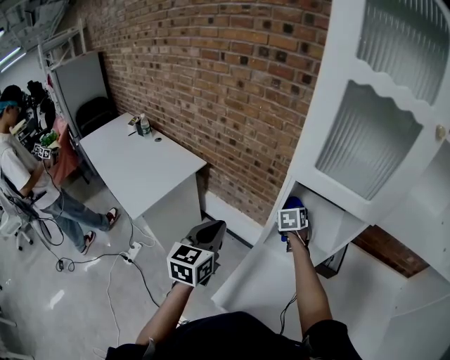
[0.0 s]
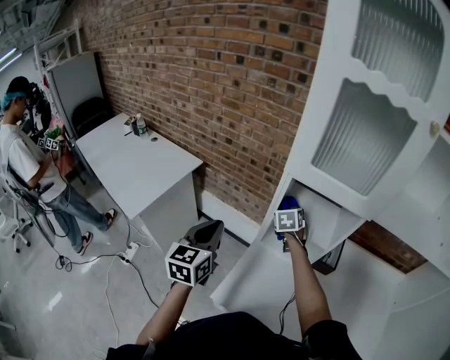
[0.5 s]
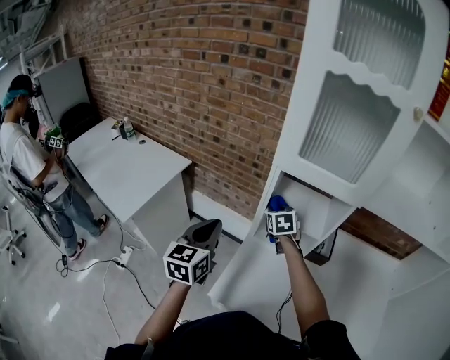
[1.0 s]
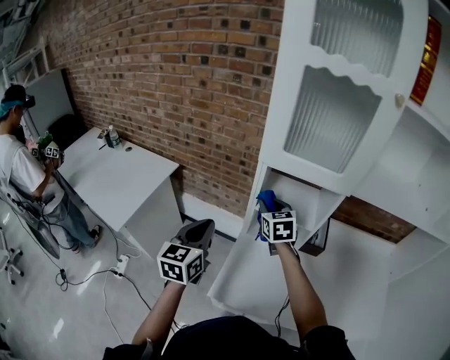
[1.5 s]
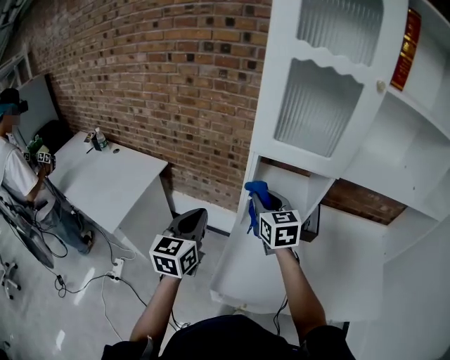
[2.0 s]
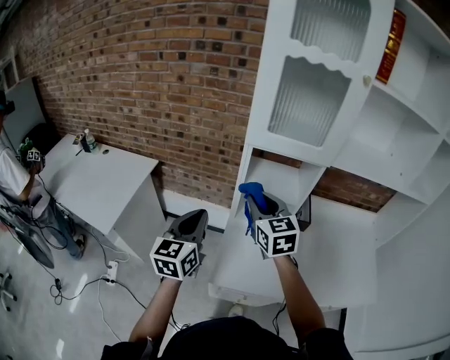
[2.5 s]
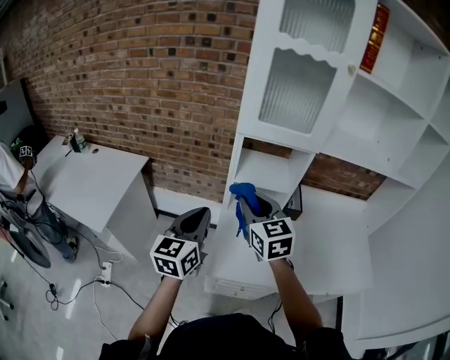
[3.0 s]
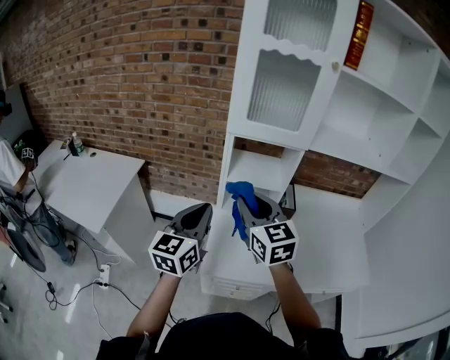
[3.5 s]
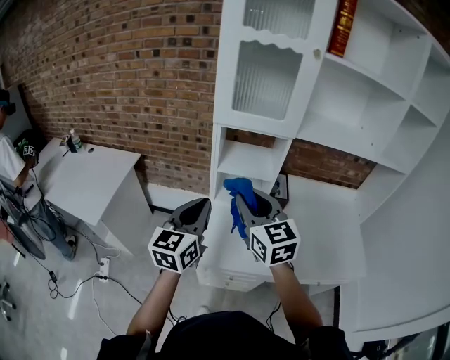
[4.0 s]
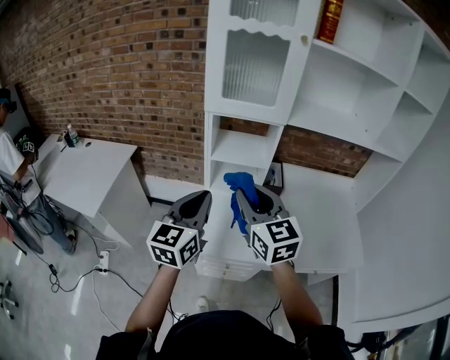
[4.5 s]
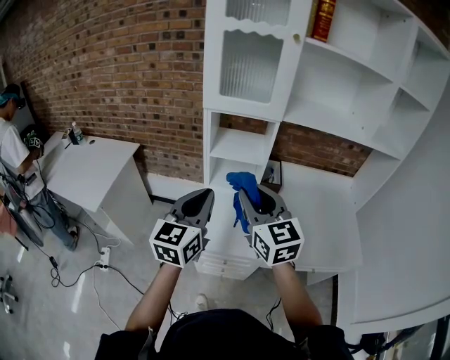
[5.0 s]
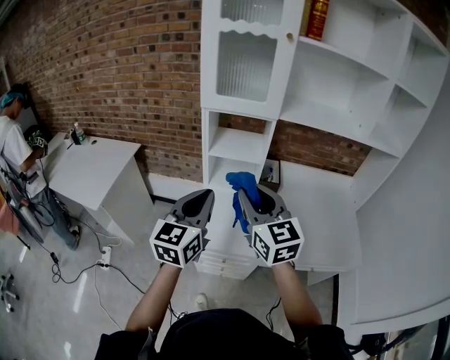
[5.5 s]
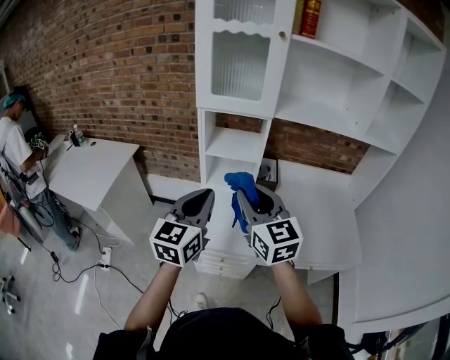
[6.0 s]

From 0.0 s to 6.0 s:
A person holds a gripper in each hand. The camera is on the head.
From 0.0 s to 2.0 s: The right gripper heads backward and upward, covering about 25 cm, and changes its angle by about 30 degrees.
From 2.0 s to 4.0 s: The left gripper goes roughly 15 cm backward and to the right; the right gripper is displaced backward by some 20 cm.
From 4.0 s to 6.0 s: Both grippers travel together backward and to the right, roughly 10 cm.

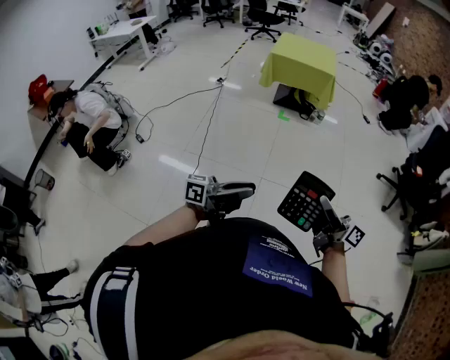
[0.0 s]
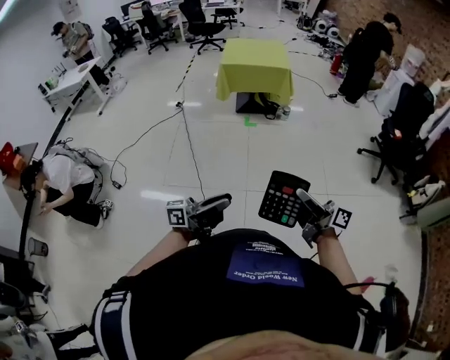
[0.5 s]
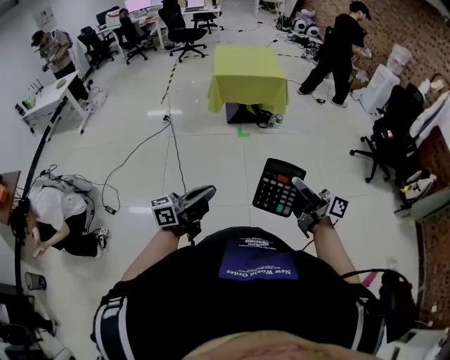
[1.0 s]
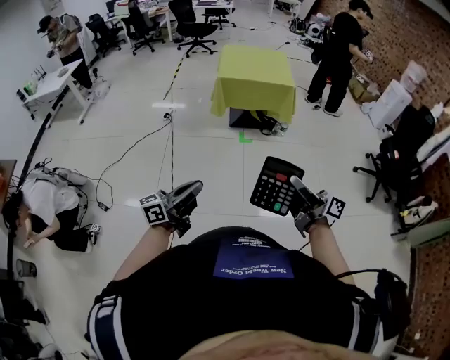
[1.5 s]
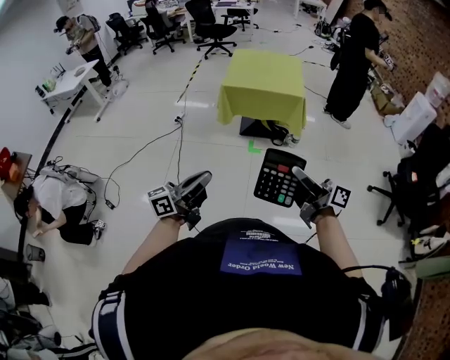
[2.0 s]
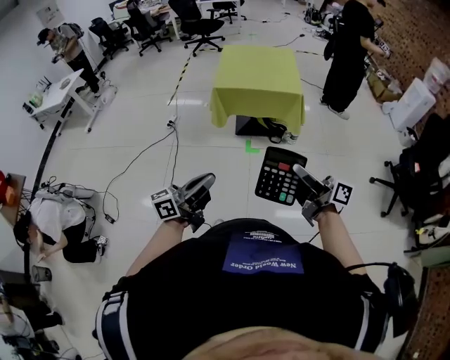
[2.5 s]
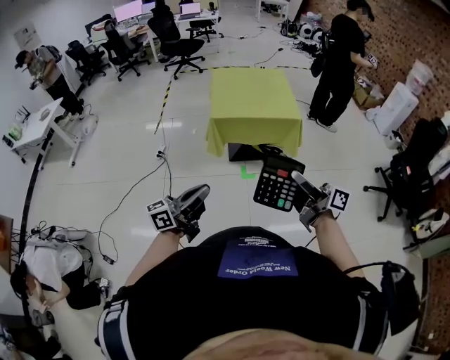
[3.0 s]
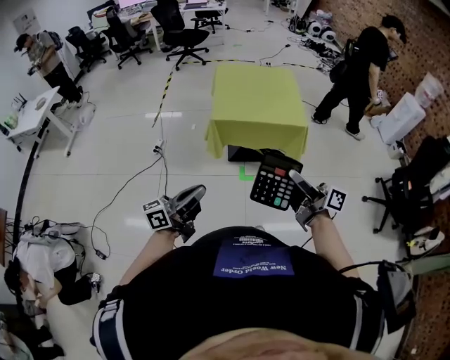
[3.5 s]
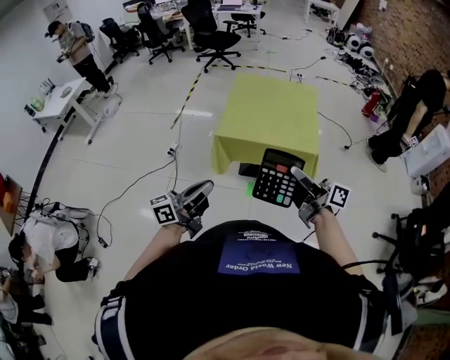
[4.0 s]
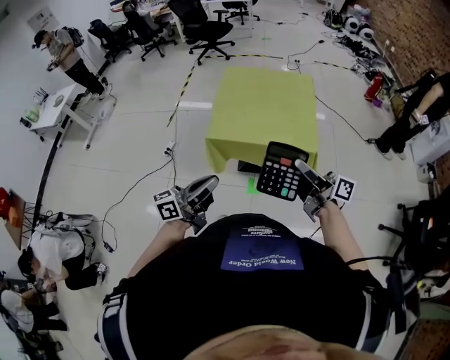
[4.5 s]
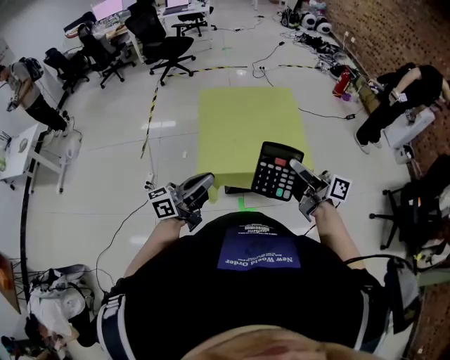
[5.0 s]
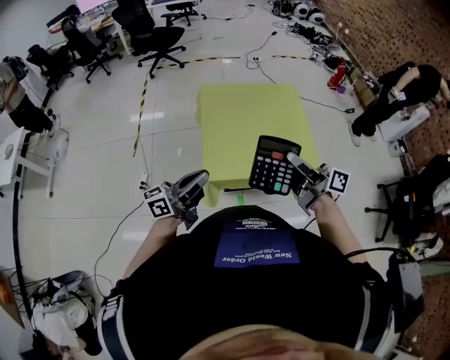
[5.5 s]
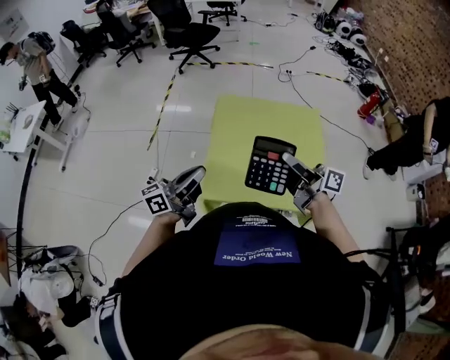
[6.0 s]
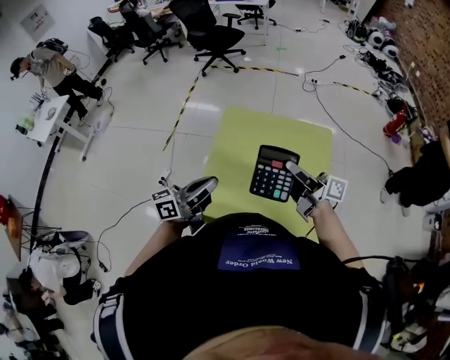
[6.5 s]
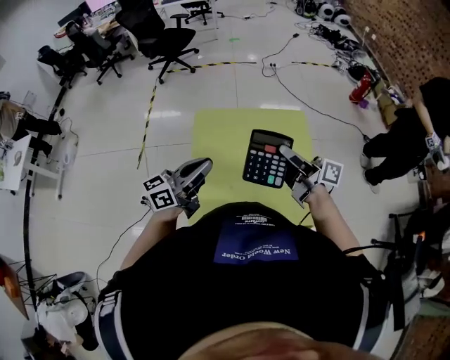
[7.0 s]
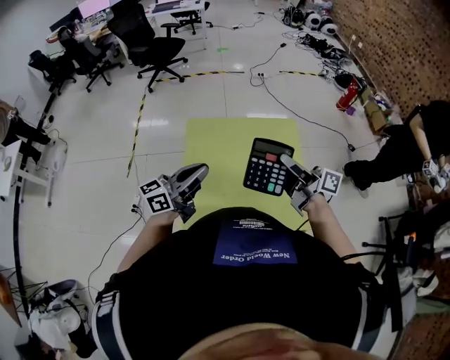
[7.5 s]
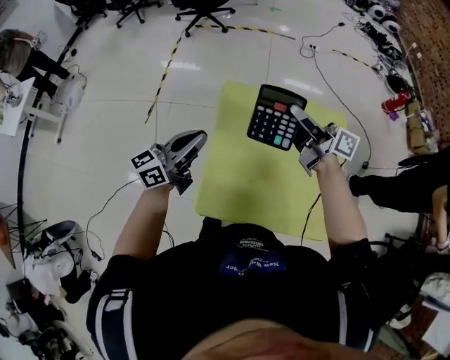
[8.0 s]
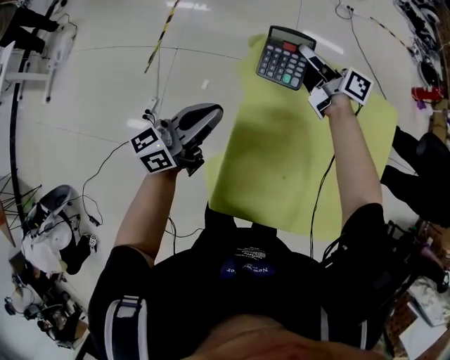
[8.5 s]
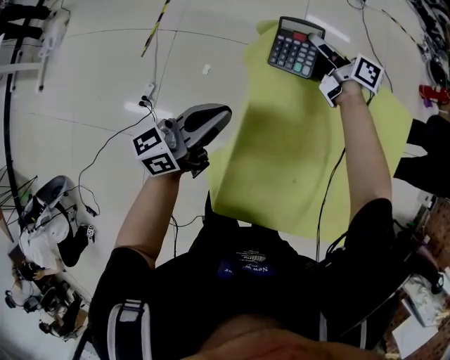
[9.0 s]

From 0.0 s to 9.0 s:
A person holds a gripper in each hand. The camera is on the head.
From 0.0 s to 2.0 s: Both grippers are carried forward, approximately 50 cm. The left gripper changes its angle by some 30 degrees, and closes its fingers.
From 2.0 s to 4.5 s: The two grippers travel together, forward, roughly 50 cm.
From 4.5 s to 7.0 s: Both grippers are carried forward, approximately 50 cm.
From 7.0 s to 9.0 s: The right gripper is displaced forward, downward and to the left by some 50 cm, and rotates roughly 30 degrees, while the left gripper is displaced downward, to the left and forward by roughly 30 cm.

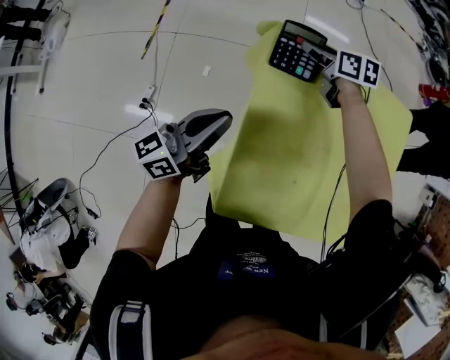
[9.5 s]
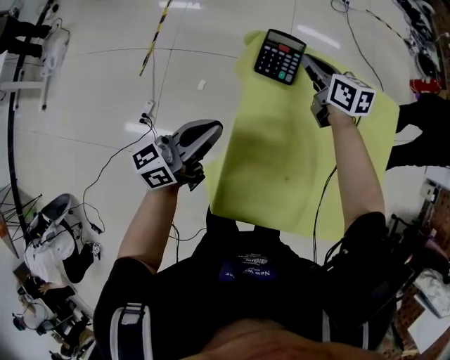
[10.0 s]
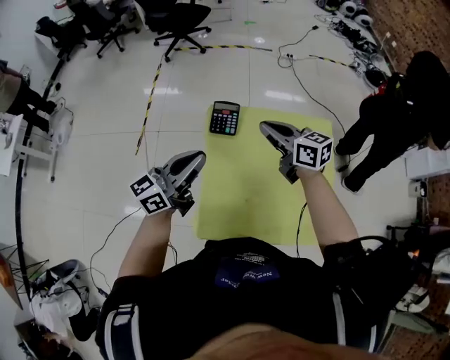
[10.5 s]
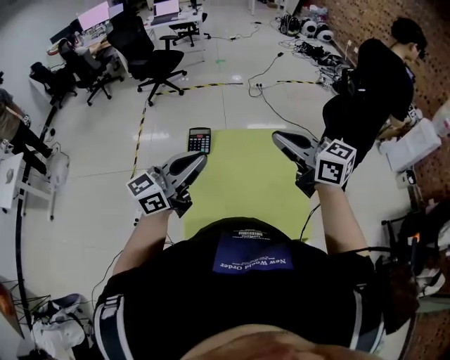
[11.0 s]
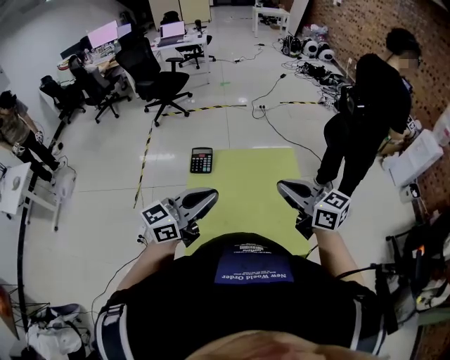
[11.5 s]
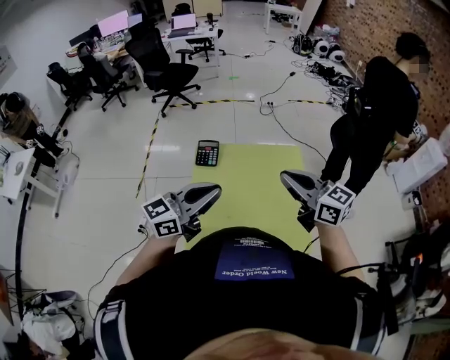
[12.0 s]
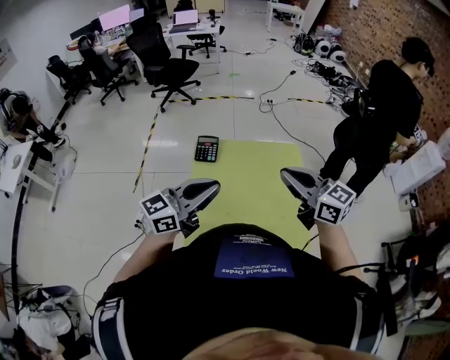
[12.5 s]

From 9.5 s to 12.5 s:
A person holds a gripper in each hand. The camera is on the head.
From 9.5 s to 11.0 s: The right gripper goes about 60 cm upward, backward and to the right, tips its fingers upward by approximately 30 degrees, and closes its fingers. The left gripper travels upward and to the right by about 35 cm, and turns by approximately 30 degrees.
From 11.0 s to 12.5 s: The two grippers go roughly 5 cm backward.

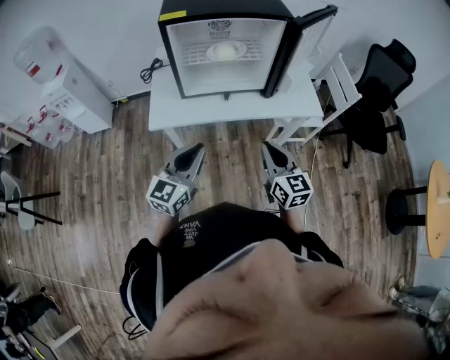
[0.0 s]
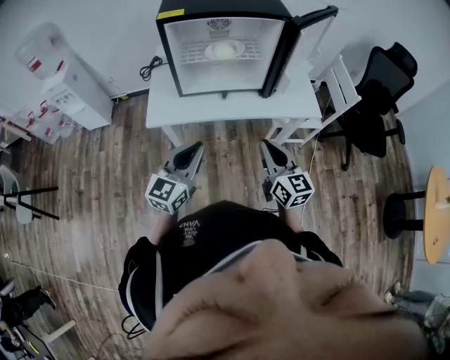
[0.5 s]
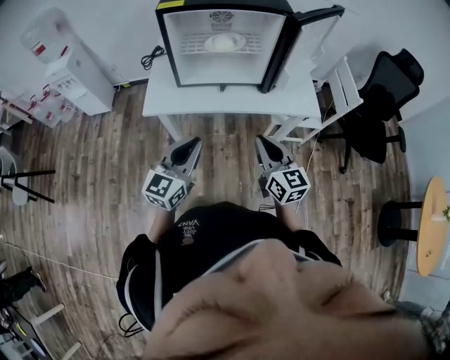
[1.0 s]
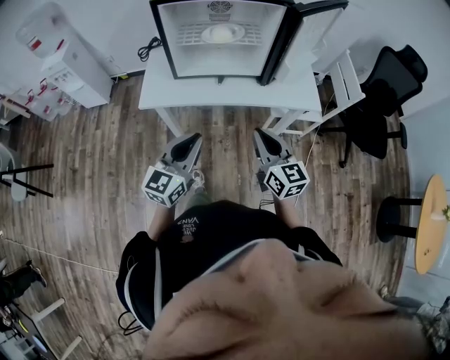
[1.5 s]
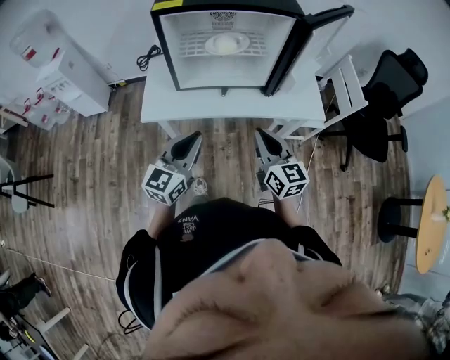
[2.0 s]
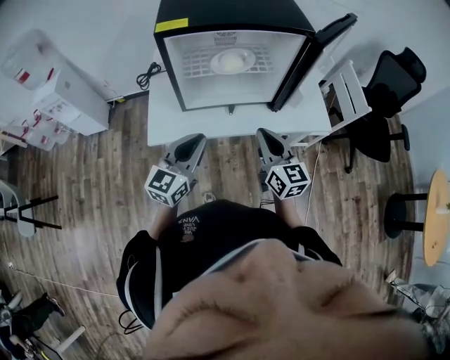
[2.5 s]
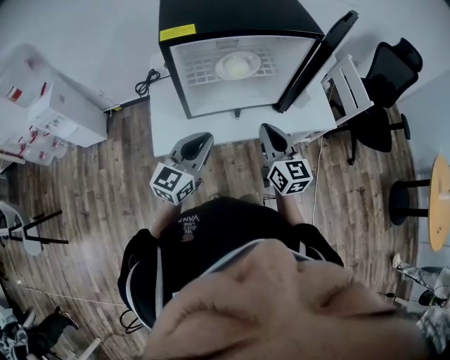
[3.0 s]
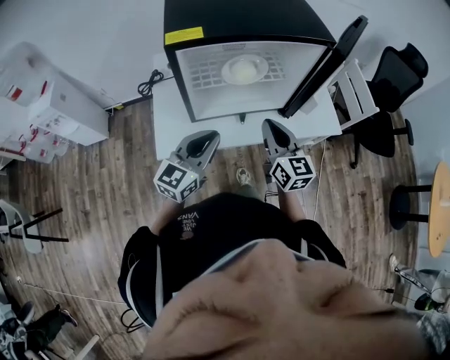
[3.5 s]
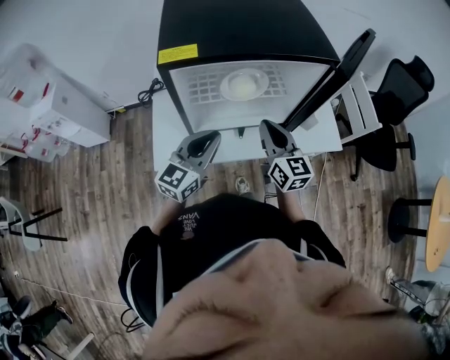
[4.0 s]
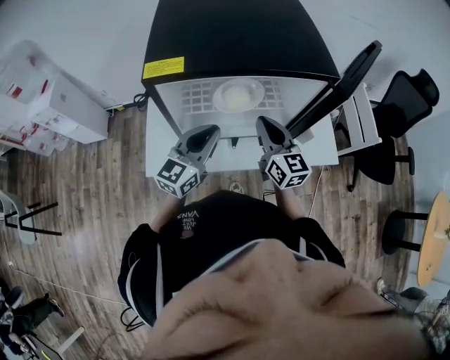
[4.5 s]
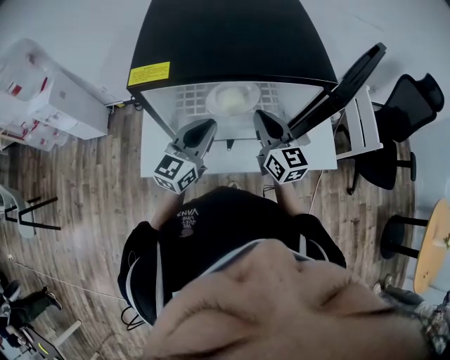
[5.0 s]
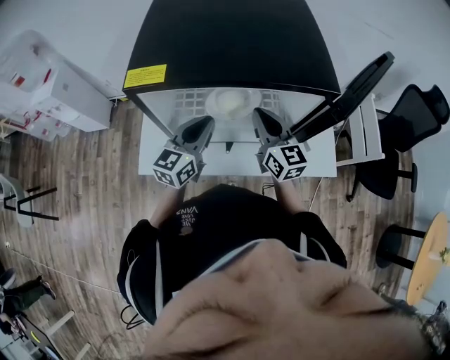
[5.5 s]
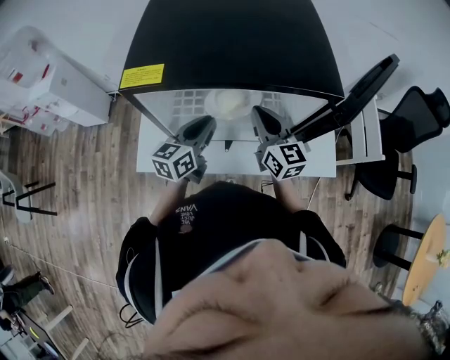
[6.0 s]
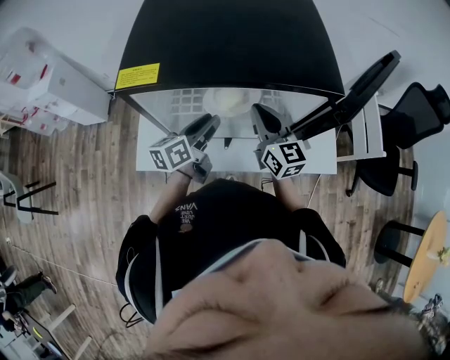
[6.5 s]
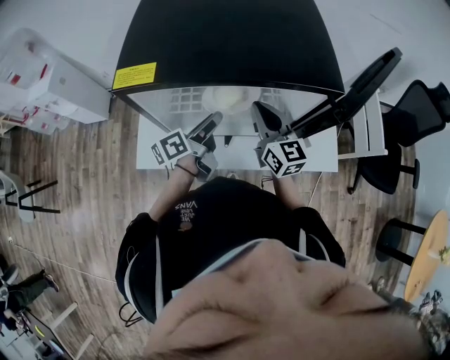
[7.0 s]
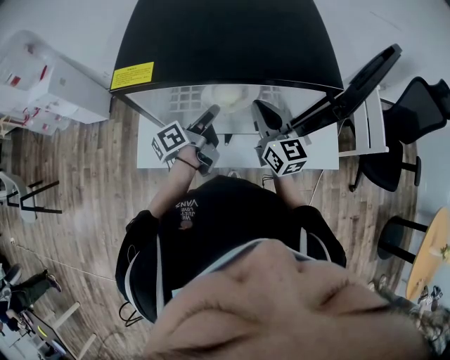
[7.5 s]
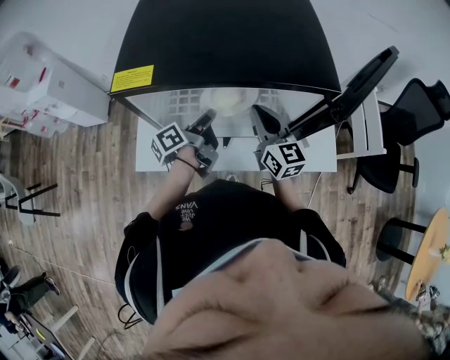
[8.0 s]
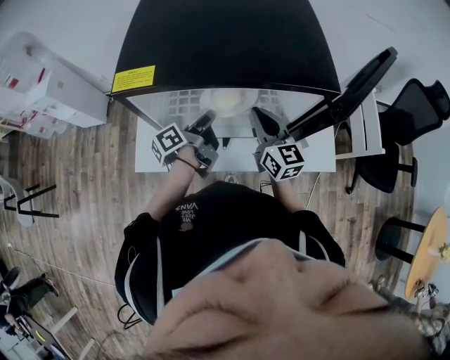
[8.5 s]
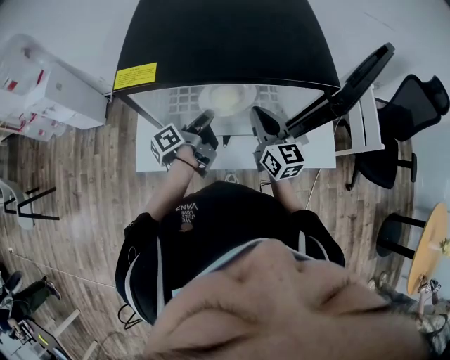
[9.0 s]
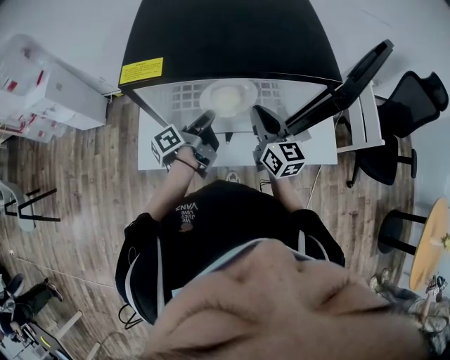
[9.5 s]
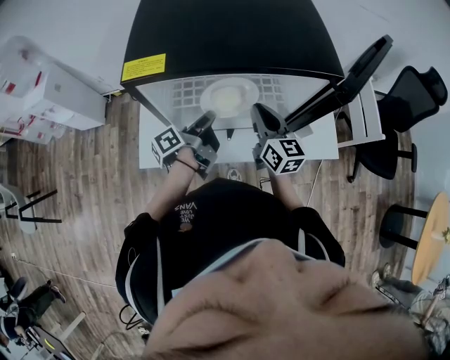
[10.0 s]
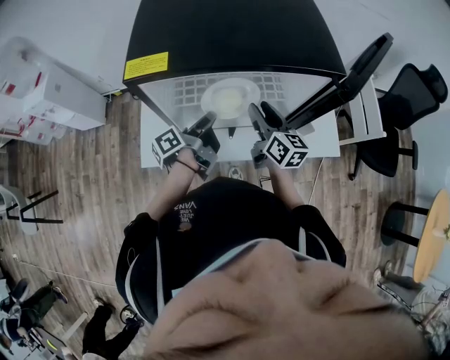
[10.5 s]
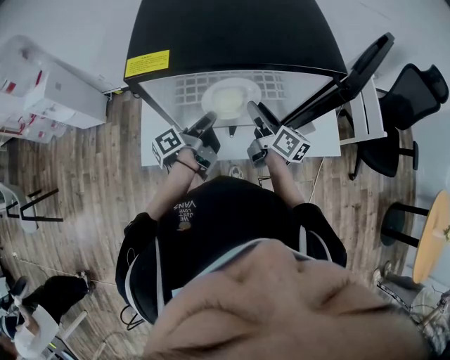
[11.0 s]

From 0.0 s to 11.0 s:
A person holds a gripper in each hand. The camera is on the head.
From 0.0 s to 2.0 s: Both grippers move forward, approximately 5 cm.
From 2.0 s to 3.5 s: The grippers both shift forward and to the left by some 15 cm.
From 3.5 s to 5.5 s: Both grippers move forward, roughly 15 cm.
From 5.5 s to 7.5 s: The left gripper moves downward, about 5 cm, rolls counterclockwise, seen from behind, by approximately 60 degrees, and opens.
From 7.5 s to 9.0 s: The left gripper closes.
From 9.0 s to 11.0 s: The right gripper swivels about 40 degrees, and opens.
